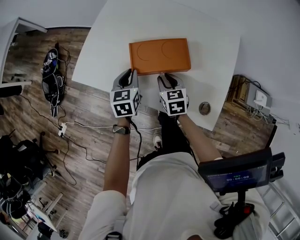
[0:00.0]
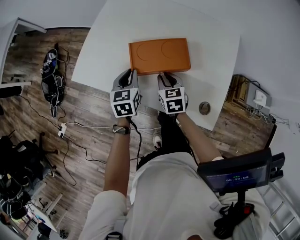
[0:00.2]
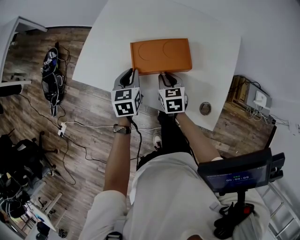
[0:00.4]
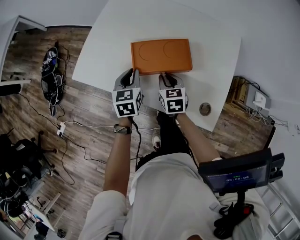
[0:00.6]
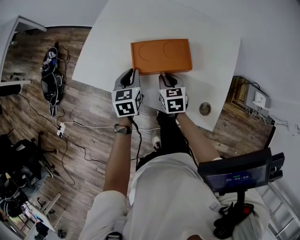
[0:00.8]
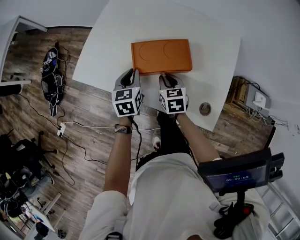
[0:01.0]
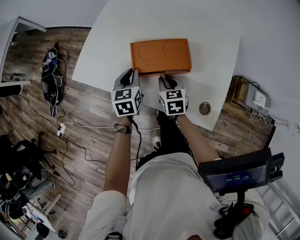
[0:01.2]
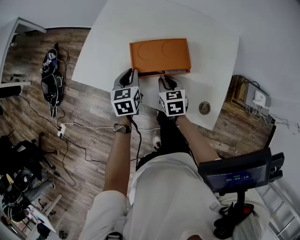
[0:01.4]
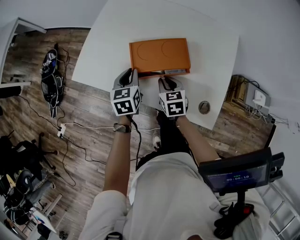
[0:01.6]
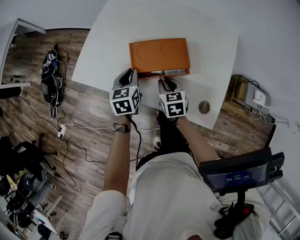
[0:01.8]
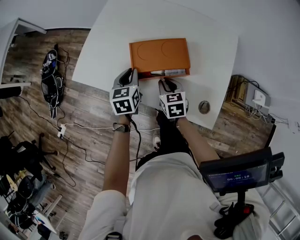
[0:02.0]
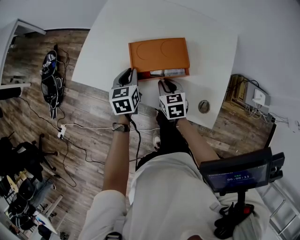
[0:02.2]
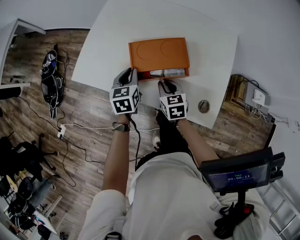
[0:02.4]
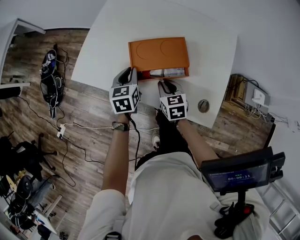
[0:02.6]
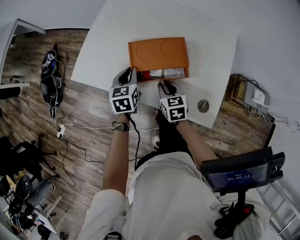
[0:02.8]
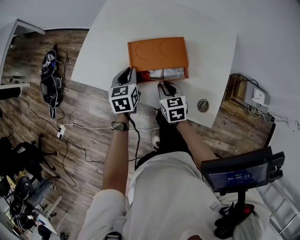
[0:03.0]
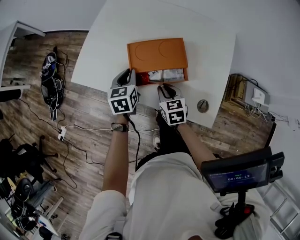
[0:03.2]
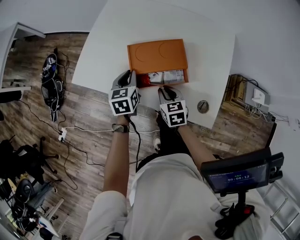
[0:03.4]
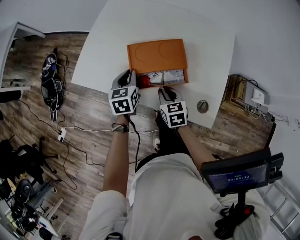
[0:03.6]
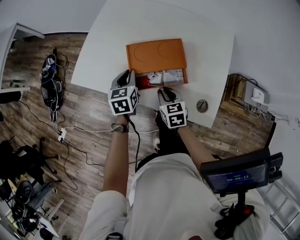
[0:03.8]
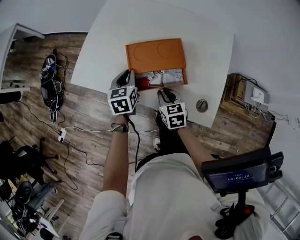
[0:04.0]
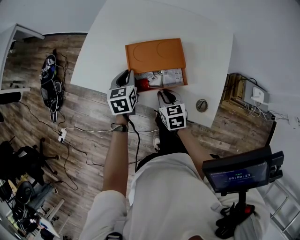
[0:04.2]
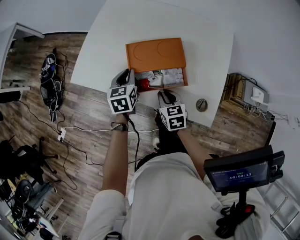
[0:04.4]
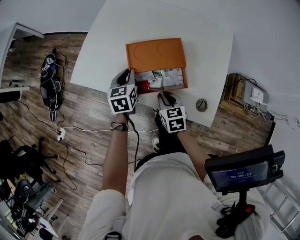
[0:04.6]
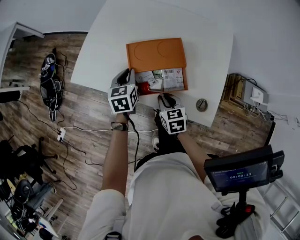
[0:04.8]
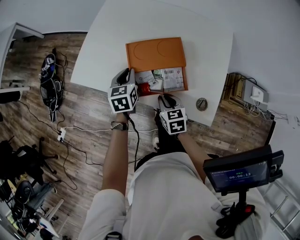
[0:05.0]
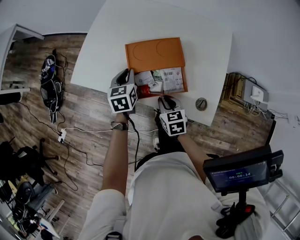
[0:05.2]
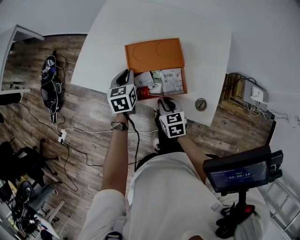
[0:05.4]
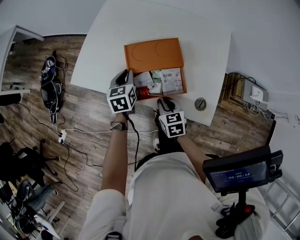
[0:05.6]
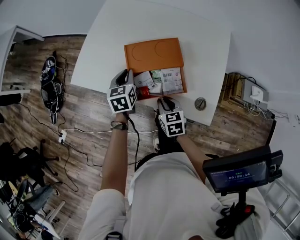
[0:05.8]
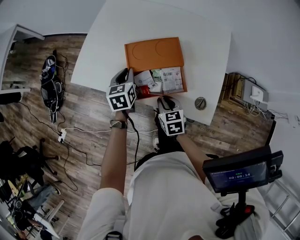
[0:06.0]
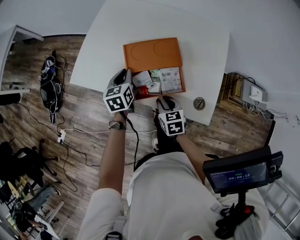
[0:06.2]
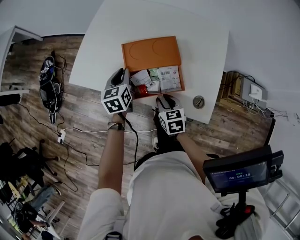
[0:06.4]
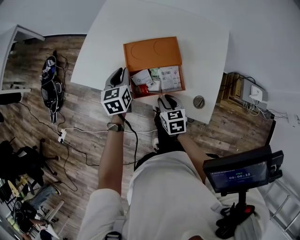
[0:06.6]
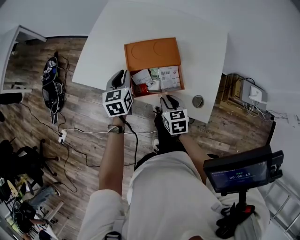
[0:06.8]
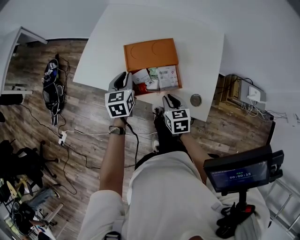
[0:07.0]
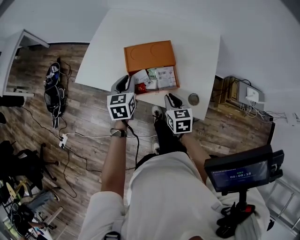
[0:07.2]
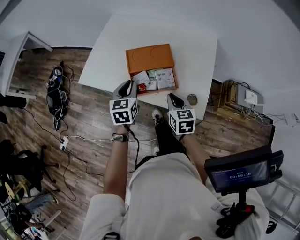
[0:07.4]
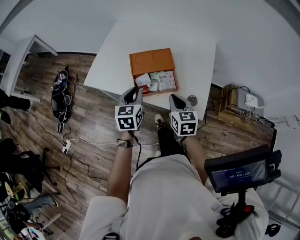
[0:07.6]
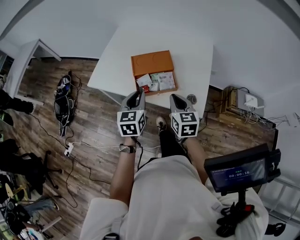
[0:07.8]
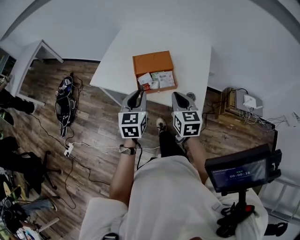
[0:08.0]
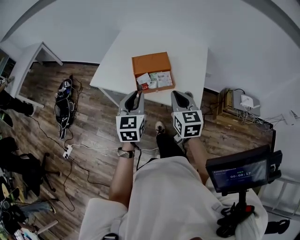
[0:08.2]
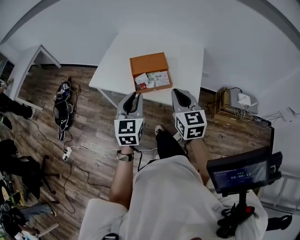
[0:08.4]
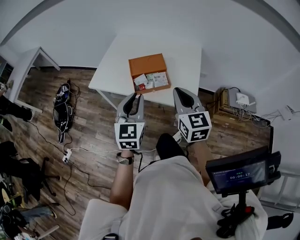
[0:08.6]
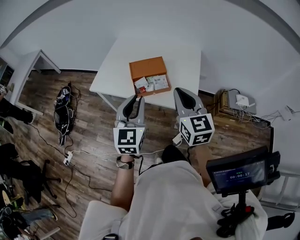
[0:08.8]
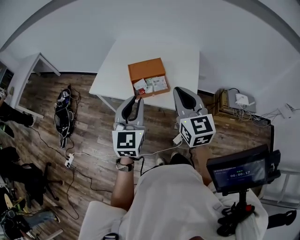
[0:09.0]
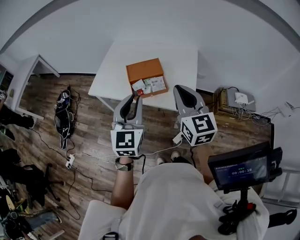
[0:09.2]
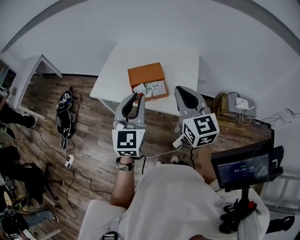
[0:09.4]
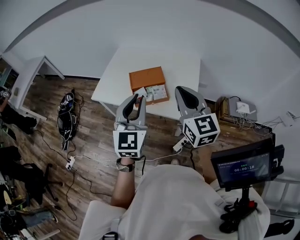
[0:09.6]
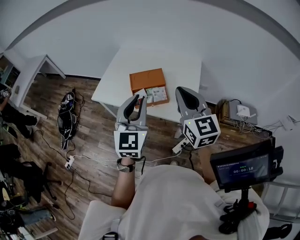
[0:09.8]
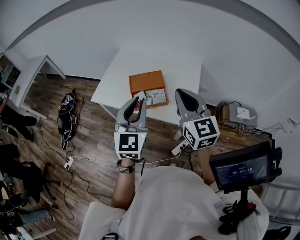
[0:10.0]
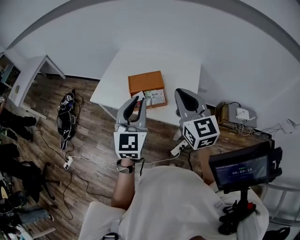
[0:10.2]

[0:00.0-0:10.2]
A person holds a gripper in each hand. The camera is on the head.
0:00.0 to 0:01.4: The two grippers keep their place.
0:01.4 to 0:04.4: The grippers stay close to where they were, moving slightly.
0:04.4 to 0:05.8: There are only small adjustments of the grippers.
0:05.8 to 0:07.2: The right gripper is displaced upward and to the right by approximately 10 cm; the left gripper heads upward and backward, covering approximately 10 cm.
0:07.2 to 0:08.8: Both grippers travel together upward and backward, some 35 cm. The right gripper points its fingers approximately 30 degrees further upward; the left gripper changes its angle by some 30 degrees.
0:08.8 to 0:10.2: Both grippers travel together upward, about 5 cm.

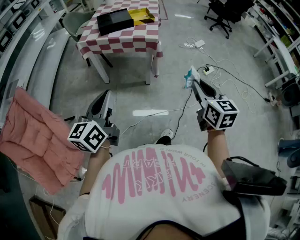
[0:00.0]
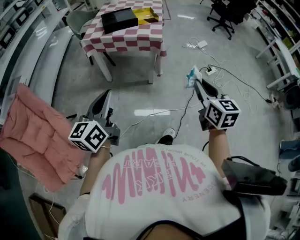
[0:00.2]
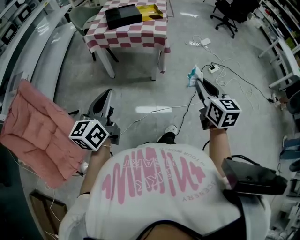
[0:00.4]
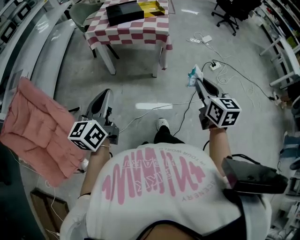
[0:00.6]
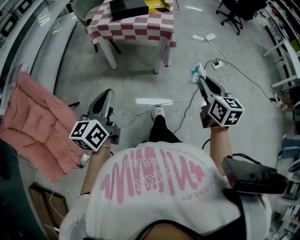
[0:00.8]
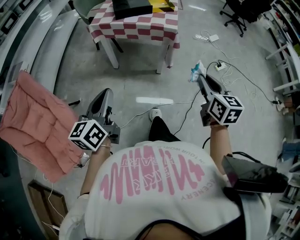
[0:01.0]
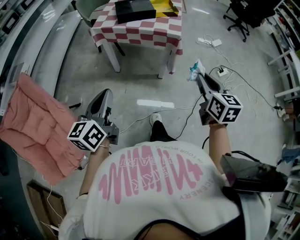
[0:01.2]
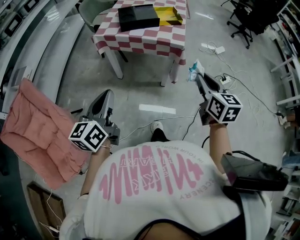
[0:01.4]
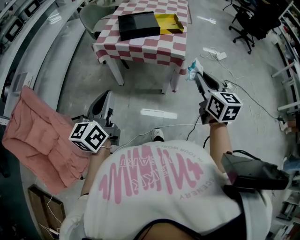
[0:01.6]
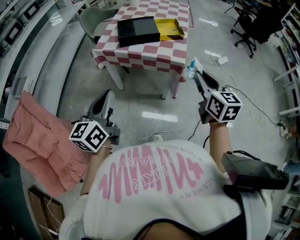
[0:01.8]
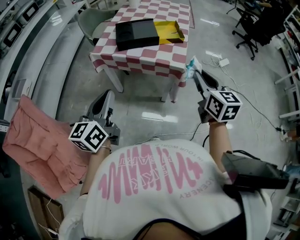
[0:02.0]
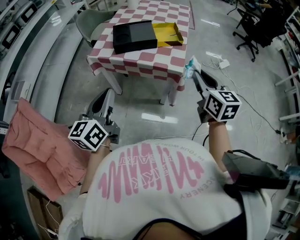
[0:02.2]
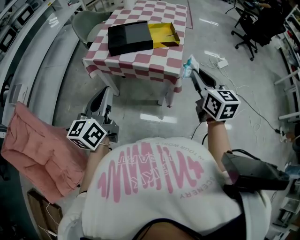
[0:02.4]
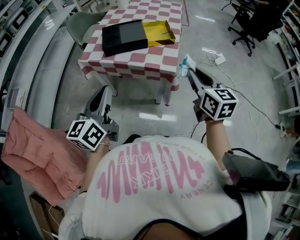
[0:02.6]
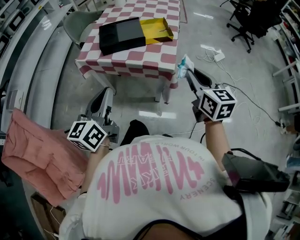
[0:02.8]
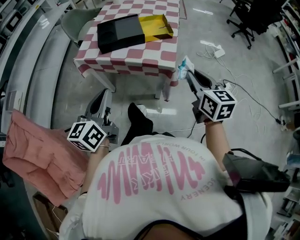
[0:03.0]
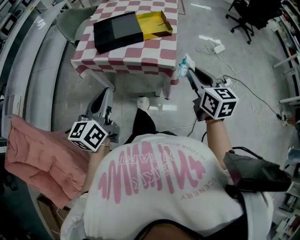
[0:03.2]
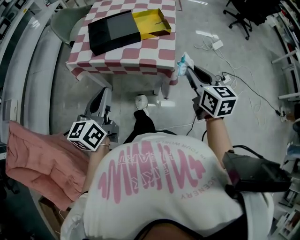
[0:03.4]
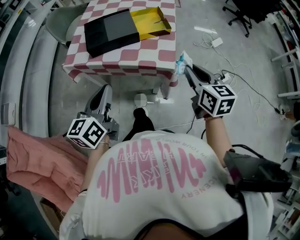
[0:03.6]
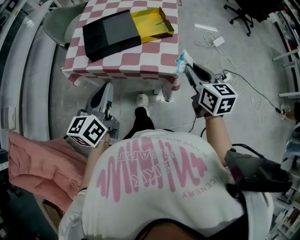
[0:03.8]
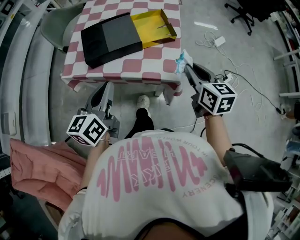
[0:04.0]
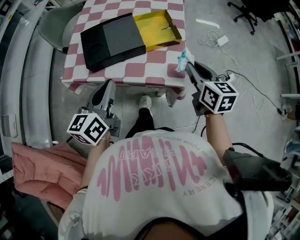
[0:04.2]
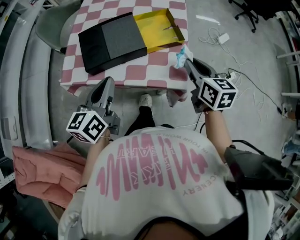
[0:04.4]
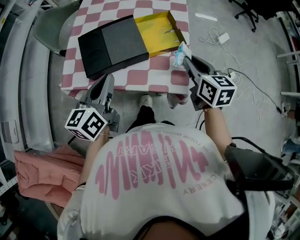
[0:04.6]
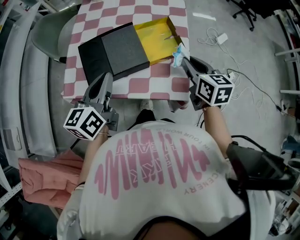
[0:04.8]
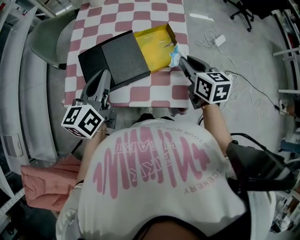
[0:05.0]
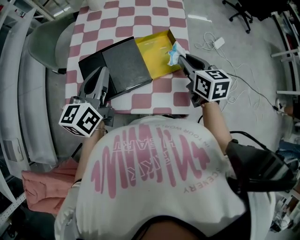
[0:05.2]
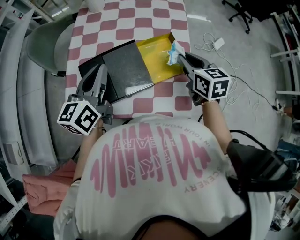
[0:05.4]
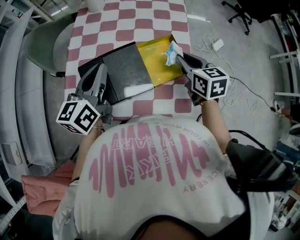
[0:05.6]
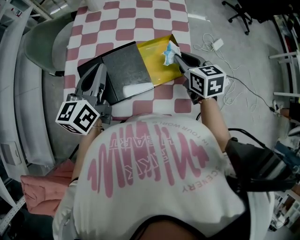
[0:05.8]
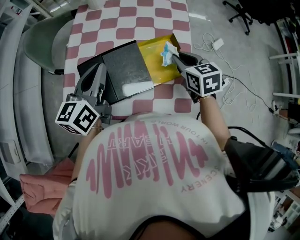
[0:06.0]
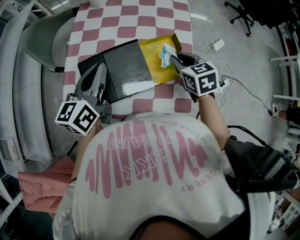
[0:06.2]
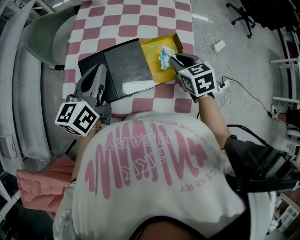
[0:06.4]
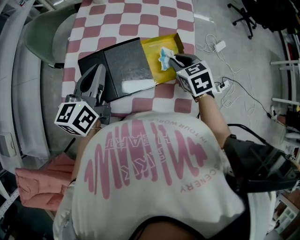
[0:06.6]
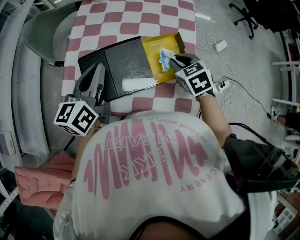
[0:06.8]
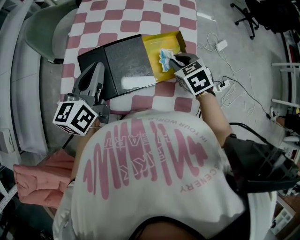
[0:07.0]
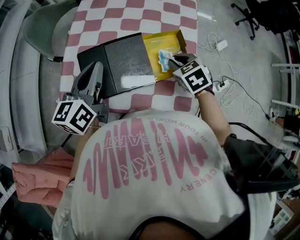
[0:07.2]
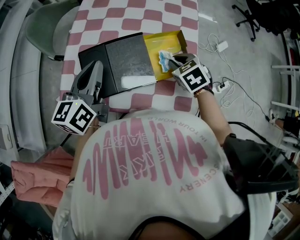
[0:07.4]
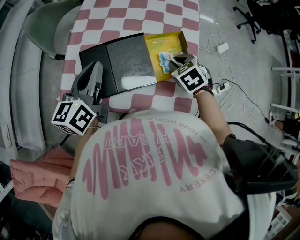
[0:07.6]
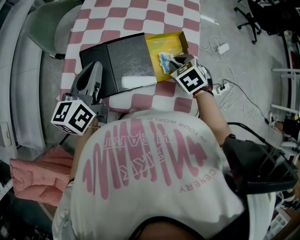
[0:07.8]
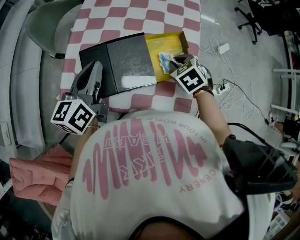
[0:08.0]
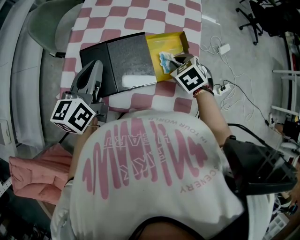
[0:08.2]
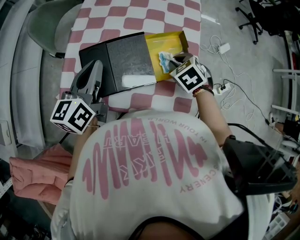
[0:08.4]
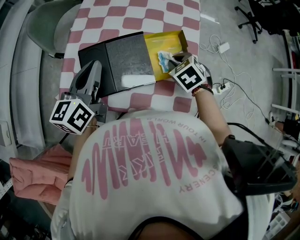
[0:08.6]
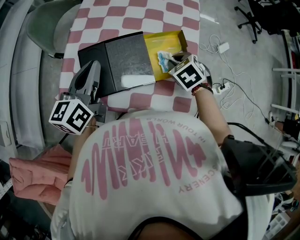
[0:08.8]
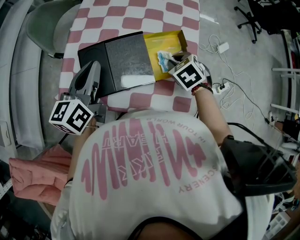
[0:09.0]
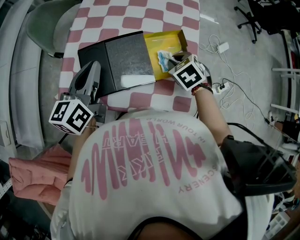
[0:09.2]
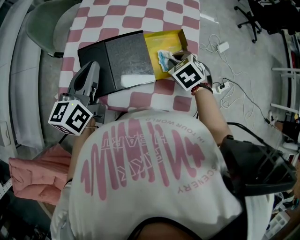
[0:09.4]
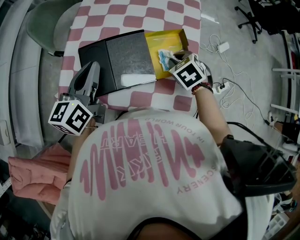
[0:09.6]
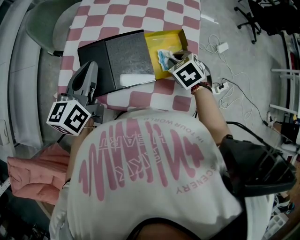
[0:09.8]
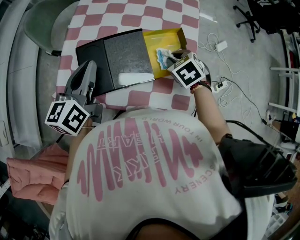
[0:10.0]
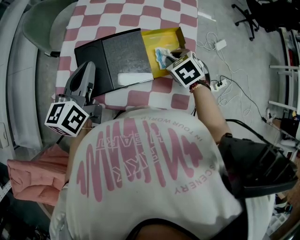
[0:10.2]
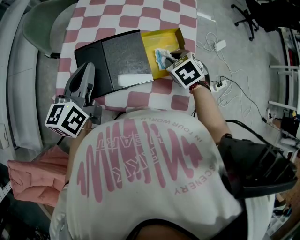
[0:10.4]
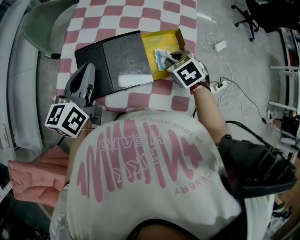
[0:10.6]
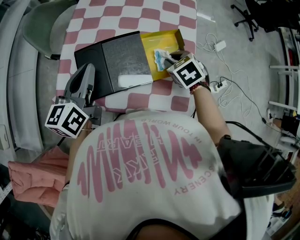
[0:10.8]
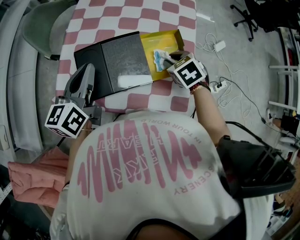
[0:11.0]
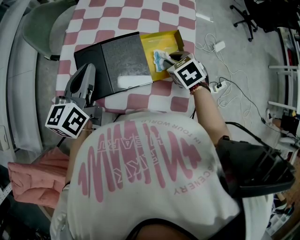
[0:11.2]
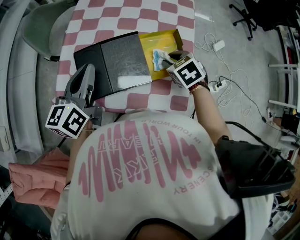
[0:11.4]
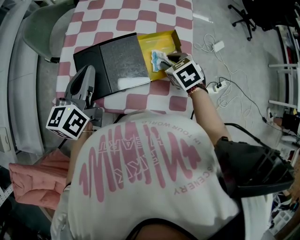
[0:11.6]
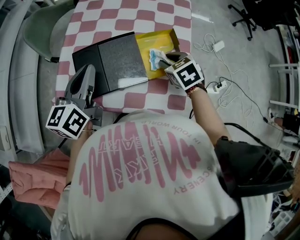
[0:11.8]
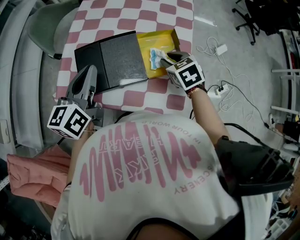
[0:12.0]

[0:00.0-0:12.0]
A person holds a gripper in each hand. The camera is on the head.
0:00.0 to 0:01.6: The two grippers go about 20 cm forward and to the left.
0:01.6 to 0:03.0: The left gripper shifts about 15 cm forward and to the right; the right gripper shifts roughly 15 cm forward.
0:03.0 to 0:04.4: Both grippers travel together forward, roughly 25 cm.
0:04.4 to 0:06.0: Both grippers move forward, about 20 cm.
0:06.0 to 0:07.6: The right gripper shifts some 10 cm downward, and swivels about 30 degrees.
0:07.6 to 0:10.4: Both grippers stay about where they are.
0:10.4 to 0:12.0: There are only small adjustments of the grippers.

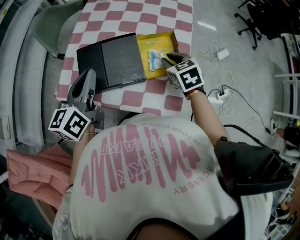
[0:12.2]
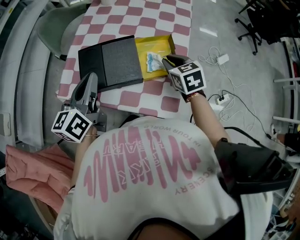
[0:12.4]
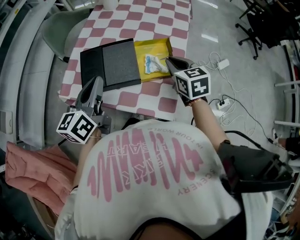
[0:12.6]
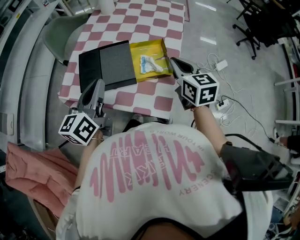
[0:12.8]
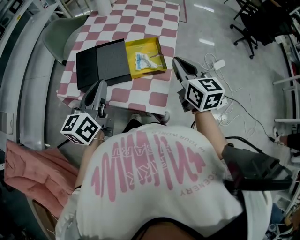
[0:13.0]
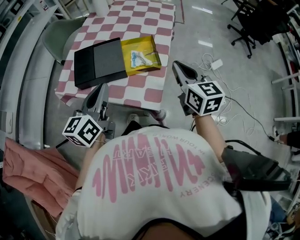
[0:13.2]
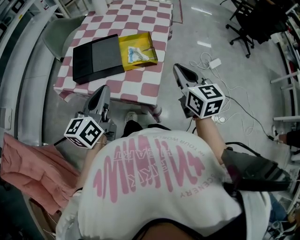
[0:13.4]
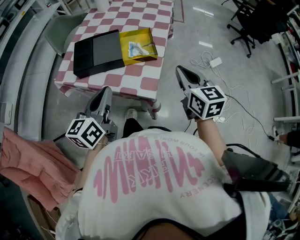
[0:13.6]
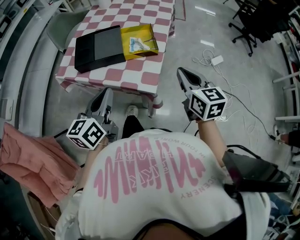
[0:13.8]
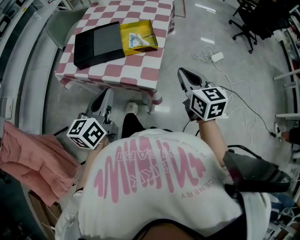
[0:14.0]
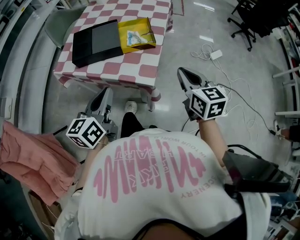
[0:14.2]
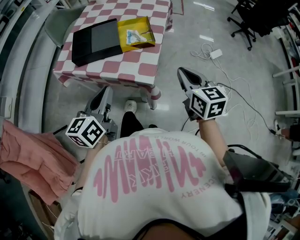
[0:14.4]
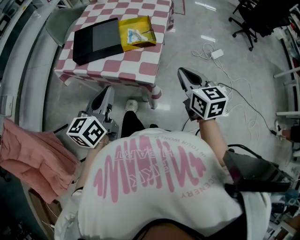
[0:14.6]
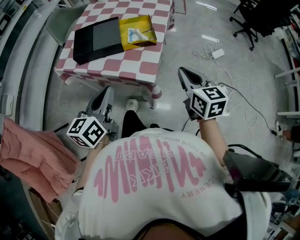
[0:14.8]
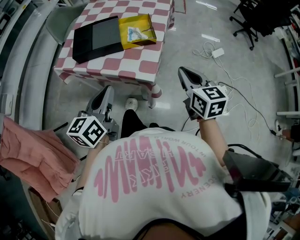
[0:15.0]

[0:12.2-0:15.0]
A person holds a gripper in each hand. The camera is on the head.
0:12.2 to 0:13.6: The right gripper travels backward, upward and to the right by some 25 cm, and swivels about 30 degrees; the left gripper heads backward and to the right, covering about 25 cm.
0:13.6 to 0:15.0: The grippers both shift backward by approximately 5 cm.
